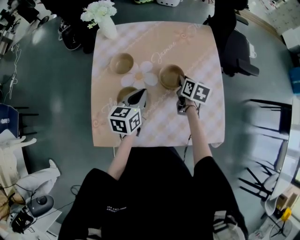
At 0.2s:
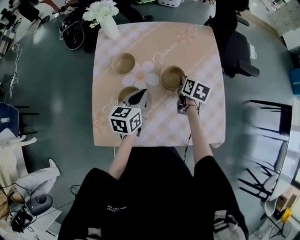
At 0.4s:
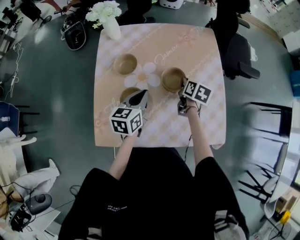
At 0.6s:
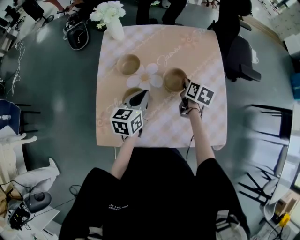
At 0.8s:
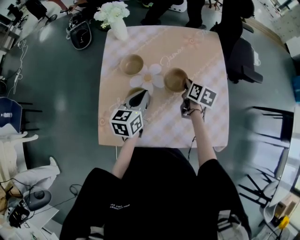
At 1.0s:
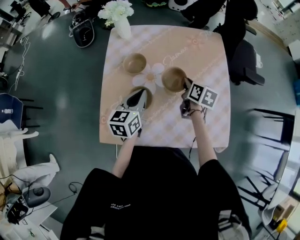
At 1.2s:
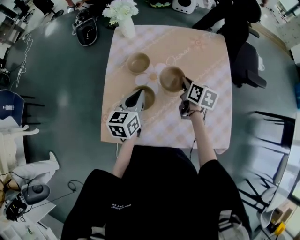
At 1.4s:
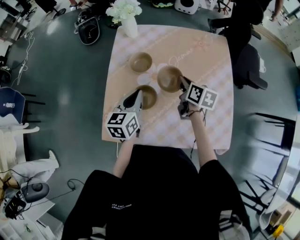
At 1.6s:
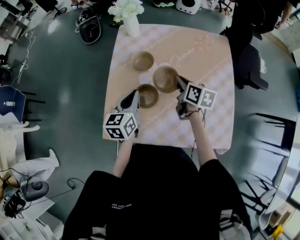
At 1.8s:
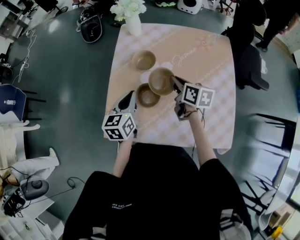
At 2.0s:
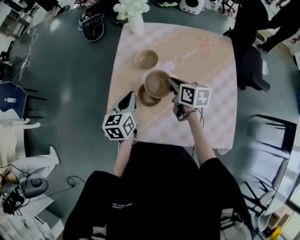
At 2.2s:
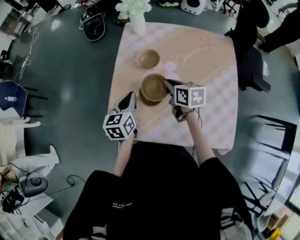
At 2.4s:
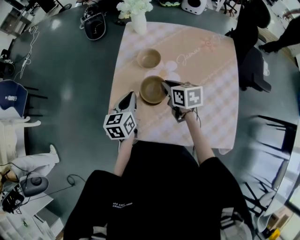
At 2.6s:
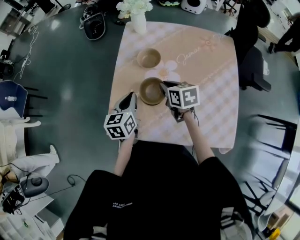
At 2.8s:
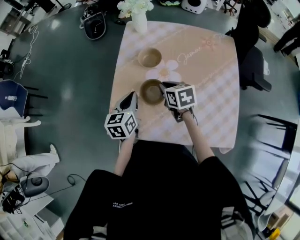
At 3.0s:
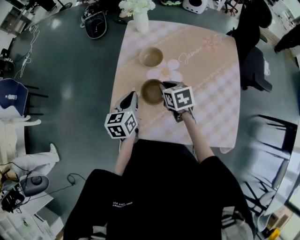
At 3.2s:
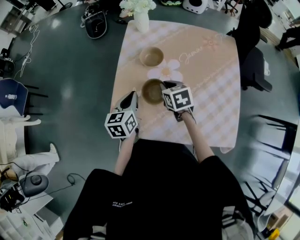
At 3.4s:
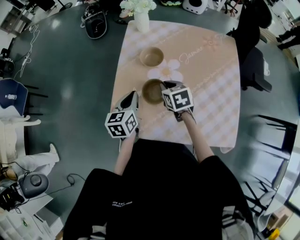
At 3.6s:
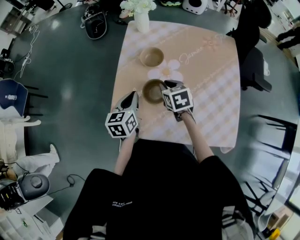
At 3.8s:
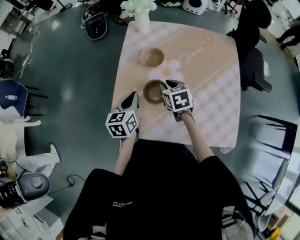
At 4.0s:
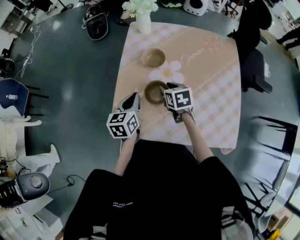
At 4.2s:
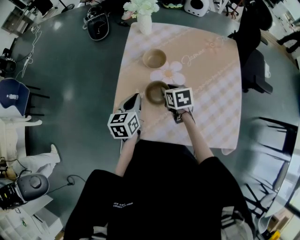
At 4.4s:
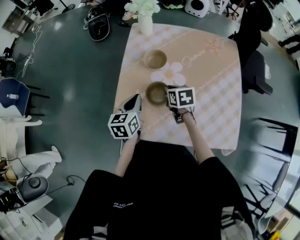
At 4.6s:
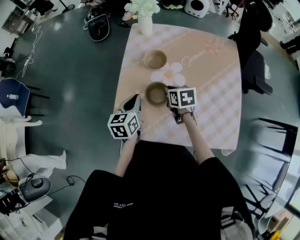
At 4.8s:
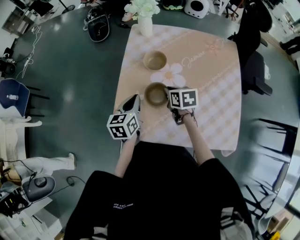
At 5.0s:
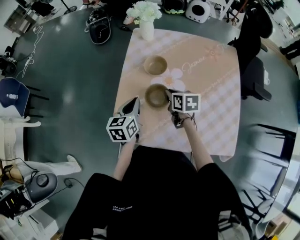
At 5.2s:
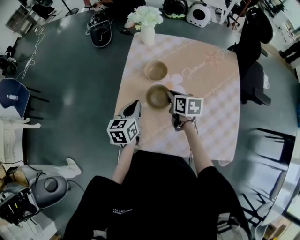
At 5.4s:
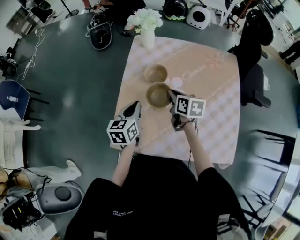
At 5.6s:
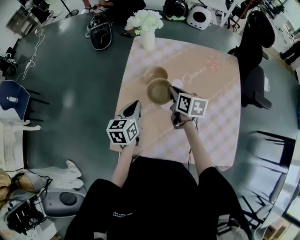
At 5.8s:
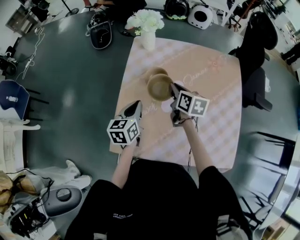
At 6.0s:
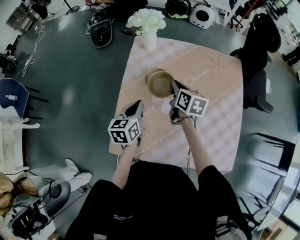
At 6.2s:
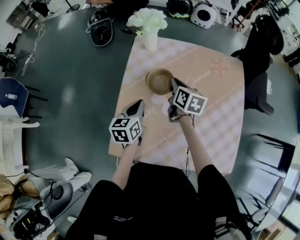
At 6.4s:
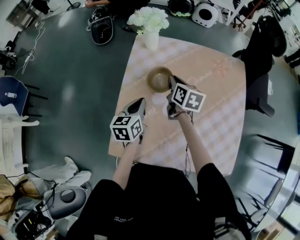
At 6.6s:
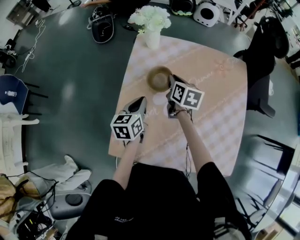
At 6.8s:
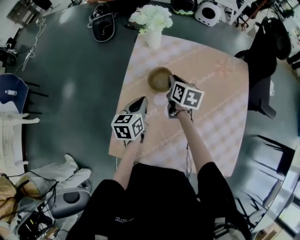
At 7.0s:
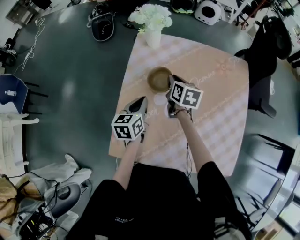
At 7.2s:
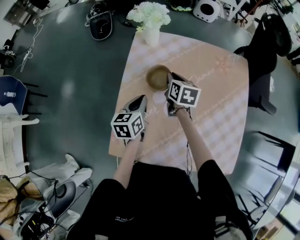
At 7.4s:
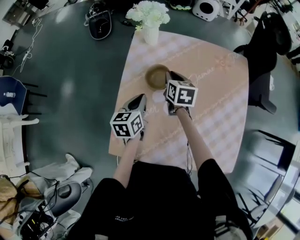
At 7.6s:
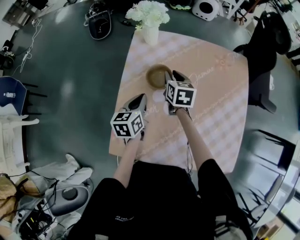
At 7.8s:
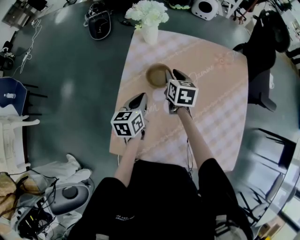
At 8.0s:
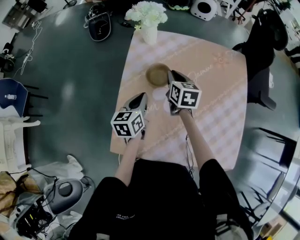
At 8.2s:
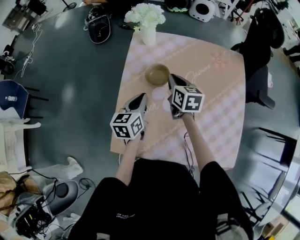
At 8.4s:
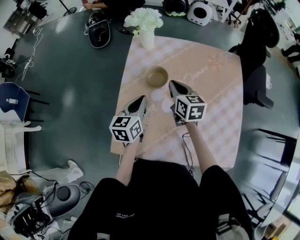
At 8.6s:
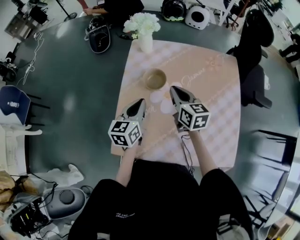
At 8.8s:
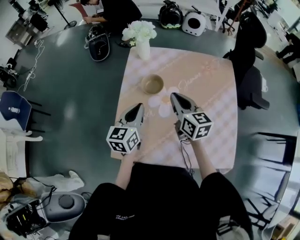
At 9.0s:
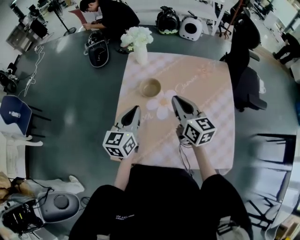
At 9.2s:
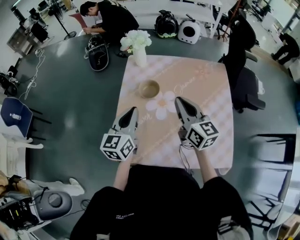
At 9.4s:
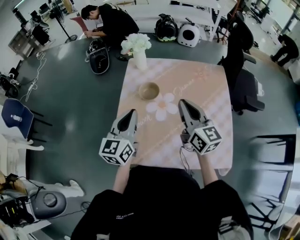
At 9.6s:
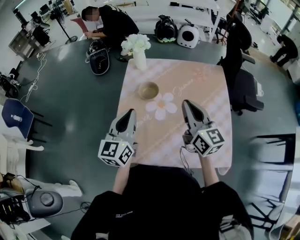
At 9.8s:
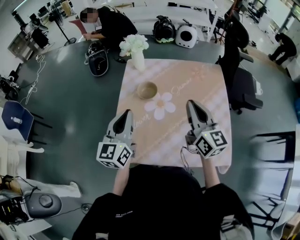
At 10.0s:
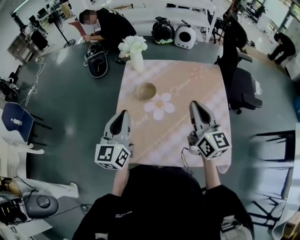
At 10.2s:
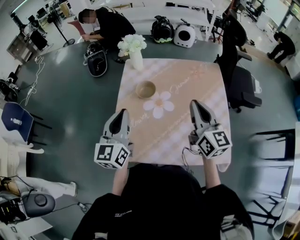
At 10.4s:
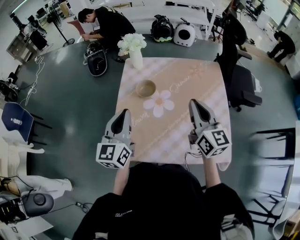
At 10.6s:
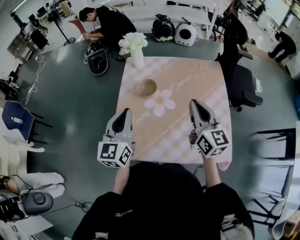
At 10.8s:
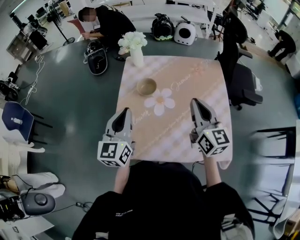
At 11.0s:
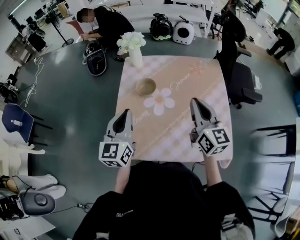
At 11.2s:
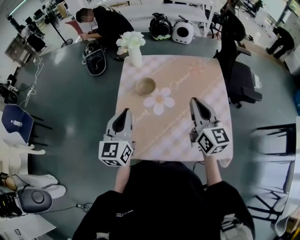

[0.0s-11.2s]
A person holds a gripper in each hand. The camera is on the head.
0.0s to 1.6s: The left gripper travels to the left by about 10 cm. Meanwhile the right gripper goes some 15 cm to the left and upward, and rotates some 20 degrees.
1.6s to 3.2s: The right gripper travels to the left by about 10 cm, and turns by approximately 40 degrees, while the left gripper shifts roughly 5 cm to the left.
3.2s to 4.8s: The right gripper opens, then closes again.
4.8s to 6.4s: The right gripper moves forward, some 15 cm, and rotates about 20 degrees, while the left gripper heads forward, covering some 10 cm.
6.4s to 8.0s: The grippers make only small movements.
8.0s to 9.6s: The two grippers go roughly 25 cm upward and backward. The left gripper turns by roughly 30 degrees. The right gripper points its fingers roughly 30 degrees further upward.
9.6s to 11.2s: There are only small adjustments of the grippers.

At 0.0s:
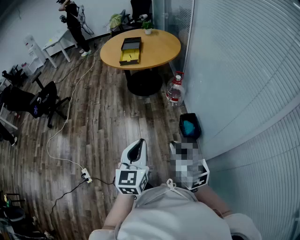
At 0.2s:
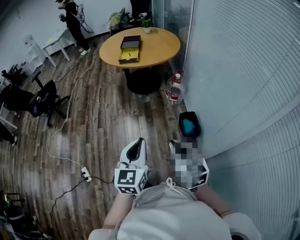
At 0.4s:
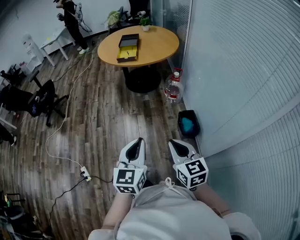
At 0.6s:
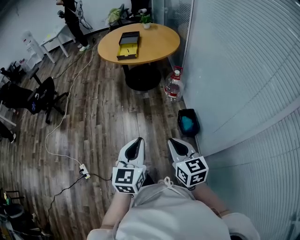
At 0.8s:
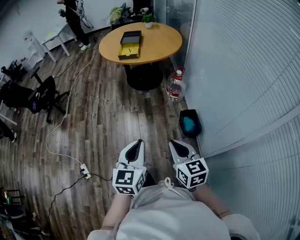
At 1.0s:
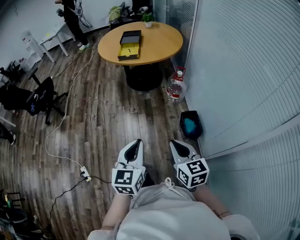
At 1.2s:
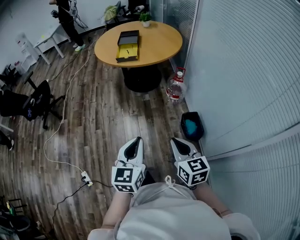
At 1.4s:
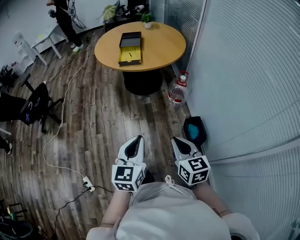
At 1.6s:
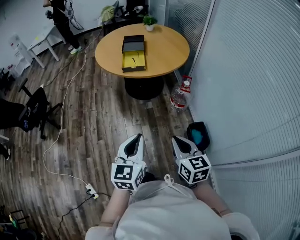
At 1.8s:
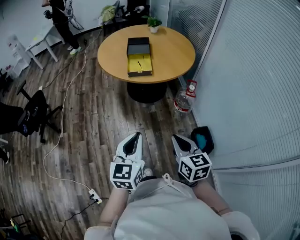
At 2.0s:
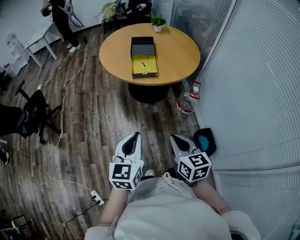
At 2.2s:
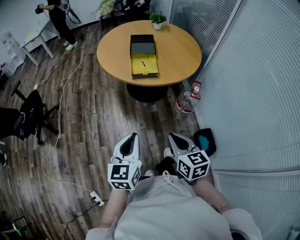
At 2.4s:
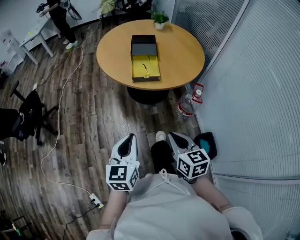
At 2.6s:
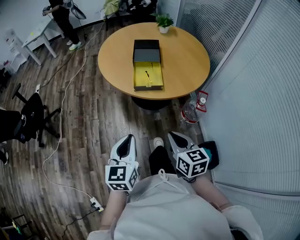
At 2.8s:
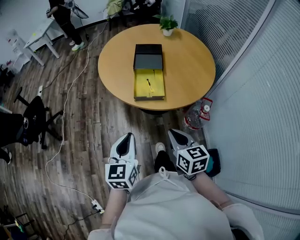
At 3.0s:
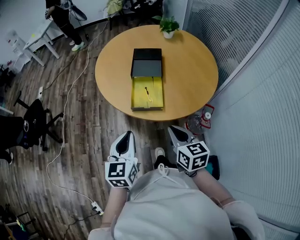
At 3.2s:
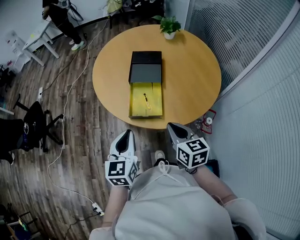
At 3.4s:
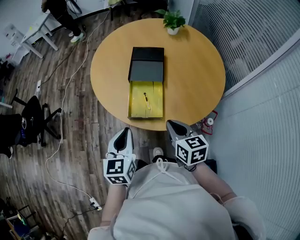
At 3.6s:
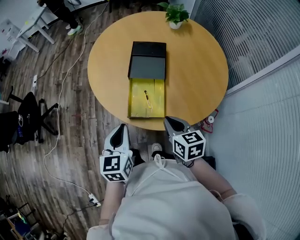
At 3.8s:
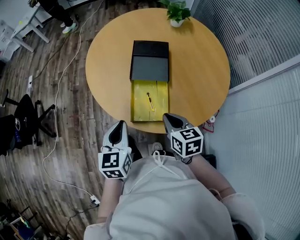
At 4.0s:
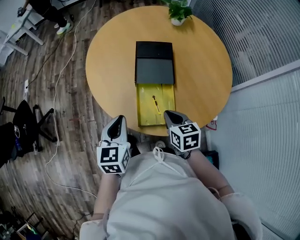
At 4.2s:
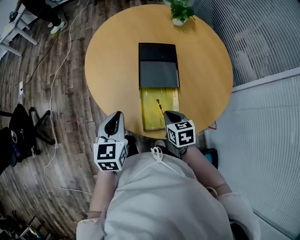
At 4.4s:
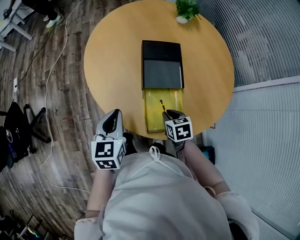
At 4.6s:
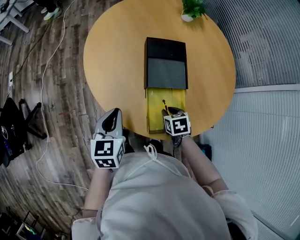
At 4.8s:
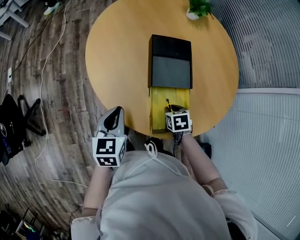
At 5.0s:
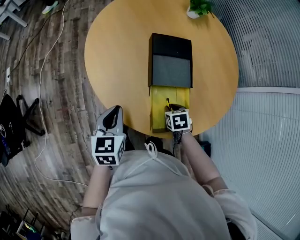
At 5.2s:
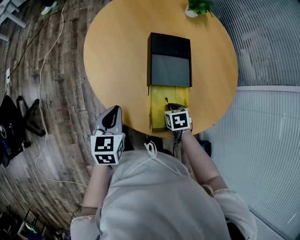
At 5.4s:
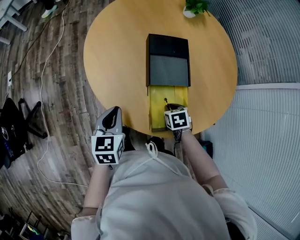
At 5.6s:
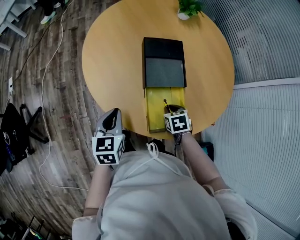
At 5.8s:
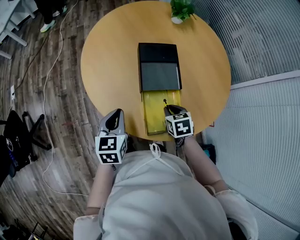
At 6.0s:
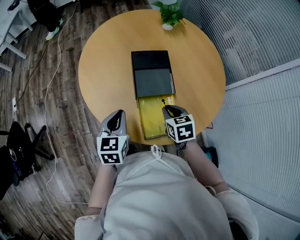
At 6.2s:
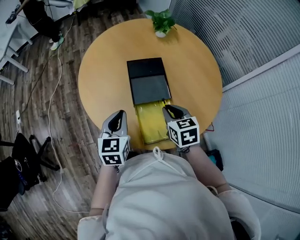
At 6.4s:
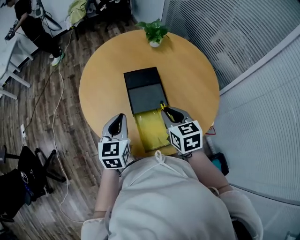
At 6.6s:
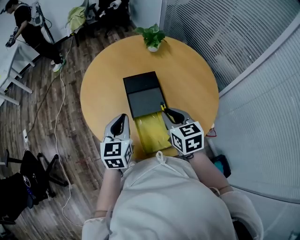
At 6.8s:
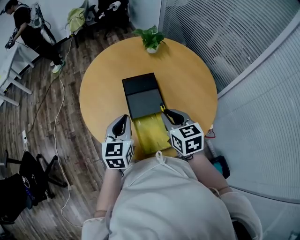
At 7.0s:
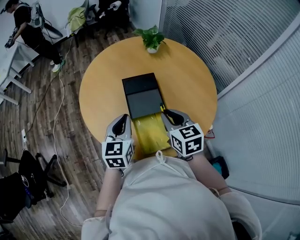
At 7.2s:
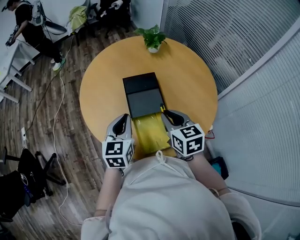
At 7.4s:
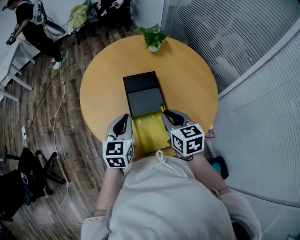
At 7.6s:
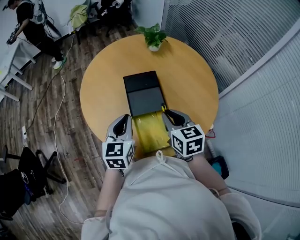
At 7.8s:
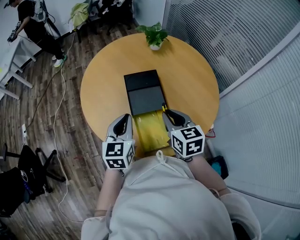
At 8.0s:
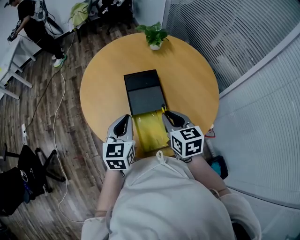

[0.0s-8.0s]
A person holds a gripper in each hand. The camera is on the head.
0.0s to 1.6s: The left gripper travels forward and to the left by approximately 30 cm. Meanwhile the right gripper travels forward by about 30 cm.
1.6s to 3.2s: The pair of grippers is taken forward, some 60 cm.
3.2s to 4.8s: The right gripper goes some 35 cm forward and downward, tips its fingers downward by roughly 40 degrees, and opens its fingers. Meanwhile the left gripper heads forward and to the left, covering approximately 35 cm.
4.8s to 6.4s: The left gripper goes approximately 15 cm upward and to the right. The right gripper shifts roughly 25 cm upward, and tips its fingers upward by about 40 degrees.
6.4s to 8.0s: The grippers make only small movements.

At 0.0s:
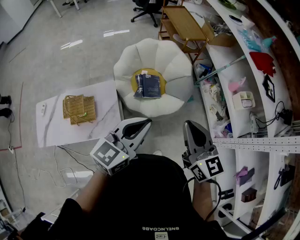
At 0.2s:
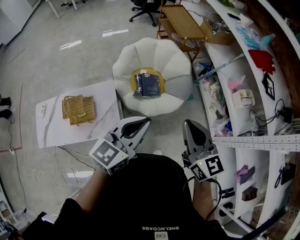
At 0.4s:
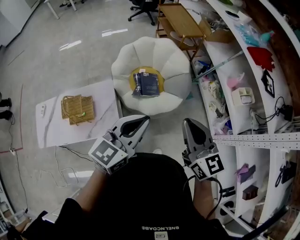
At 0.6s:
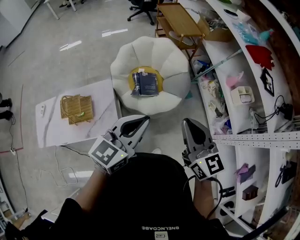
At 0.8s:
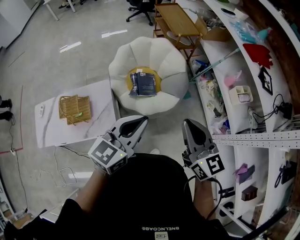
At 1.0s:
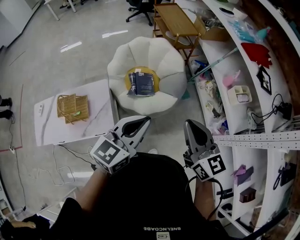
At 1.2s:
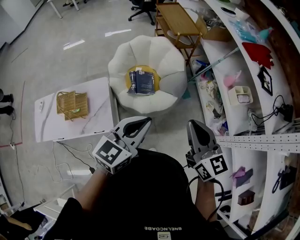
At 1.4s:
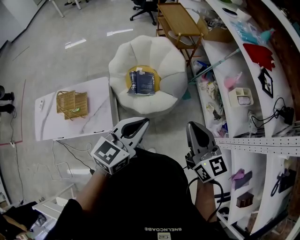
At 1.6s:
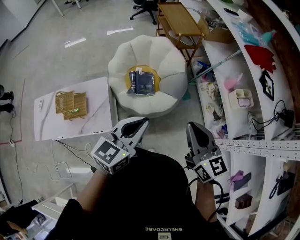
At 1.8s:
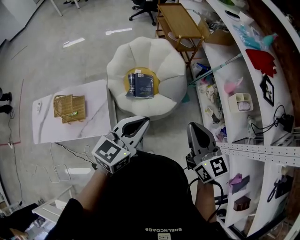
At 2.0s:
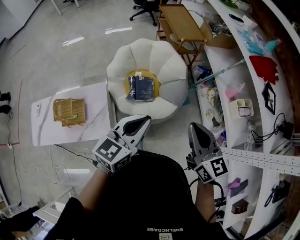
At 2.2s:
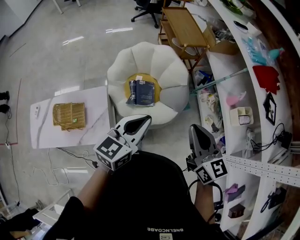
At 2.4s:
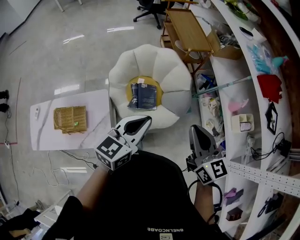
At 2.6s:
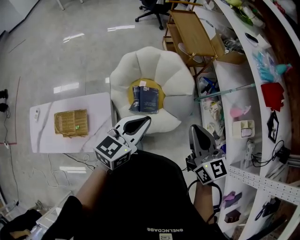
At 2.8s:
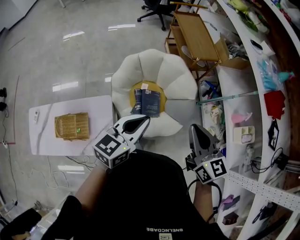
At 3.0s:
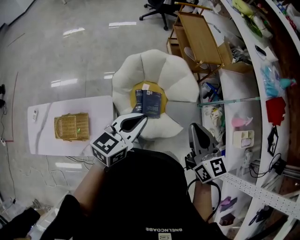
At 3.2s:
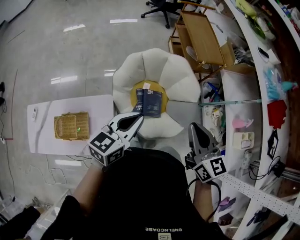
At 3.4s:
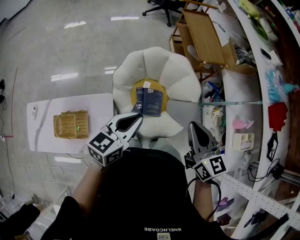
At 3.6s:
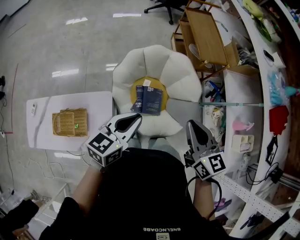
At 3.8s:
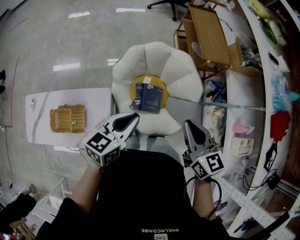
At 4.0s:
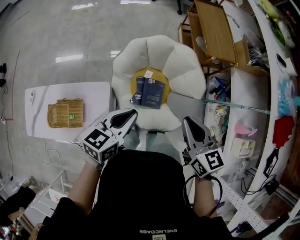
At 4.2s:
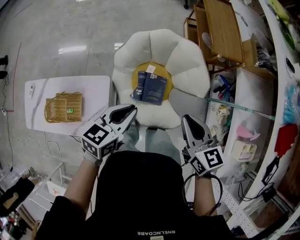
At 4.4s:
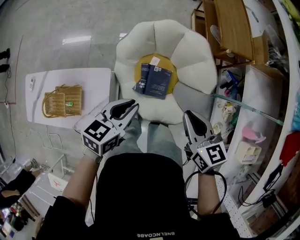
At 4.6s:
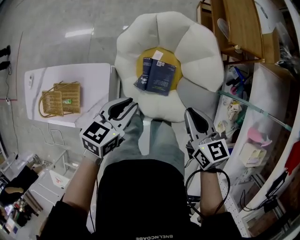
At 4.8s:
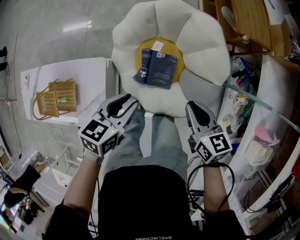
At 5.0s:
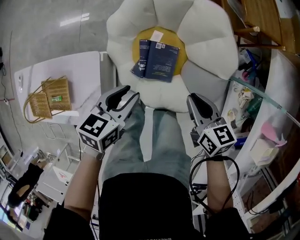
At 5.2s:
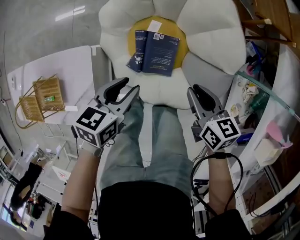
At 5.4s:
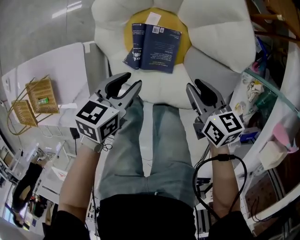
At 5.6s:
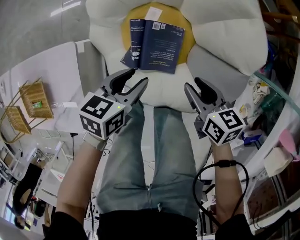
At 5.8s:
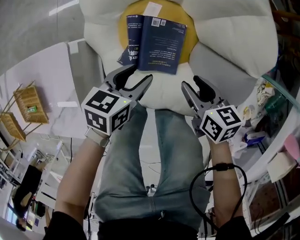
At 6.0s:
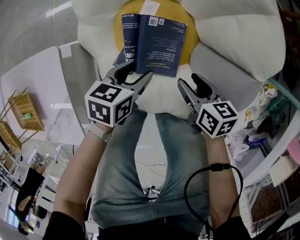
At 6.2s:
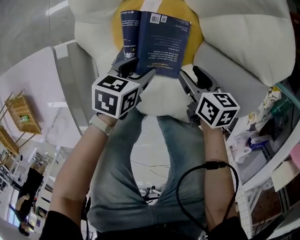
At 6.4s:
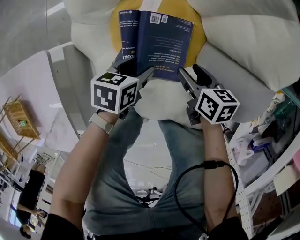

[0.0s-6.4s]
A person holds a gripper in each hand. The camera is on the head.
0.0s to 1.6s: The left gripper ends up about 10 cm from where it was.
1.6s to 3.2s: The left gripper moves approximately 35 cm.
3.2s to 4.8s: The left gripper travels downward by some 25 cm, and rotates roughly 30 degrees.
4.8s to 6.4s: The left gripper goes roughly 50 cm downward, swivels about 20 degrees, and opens.
